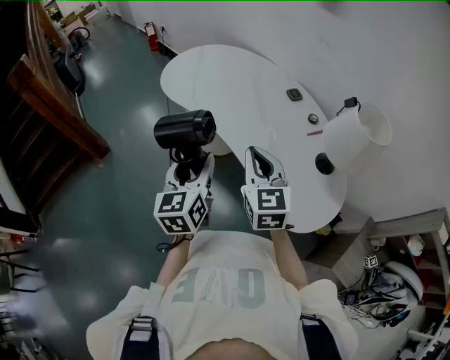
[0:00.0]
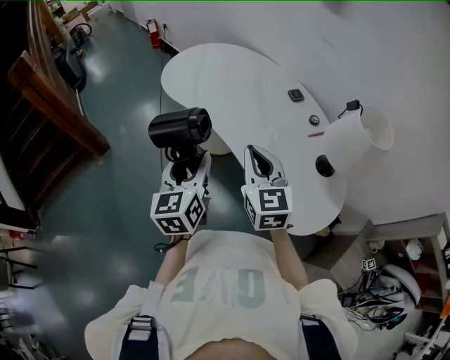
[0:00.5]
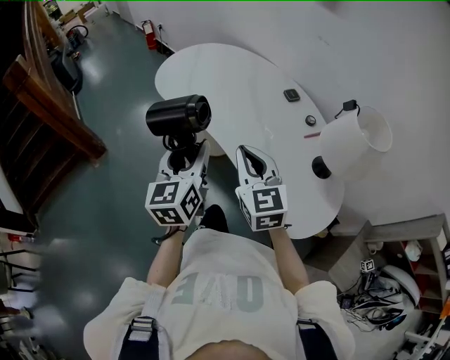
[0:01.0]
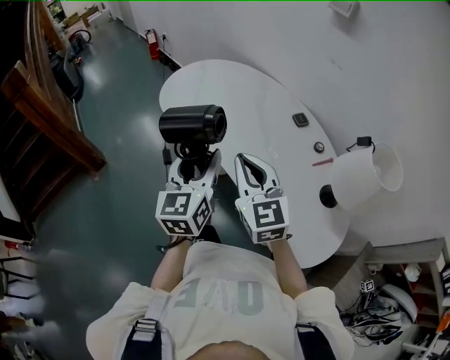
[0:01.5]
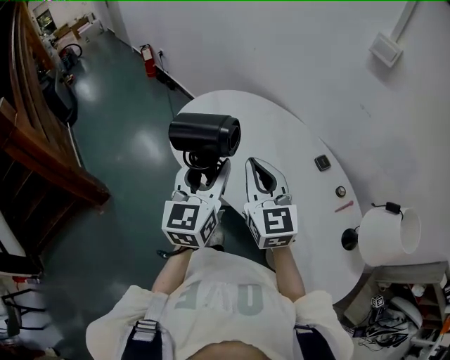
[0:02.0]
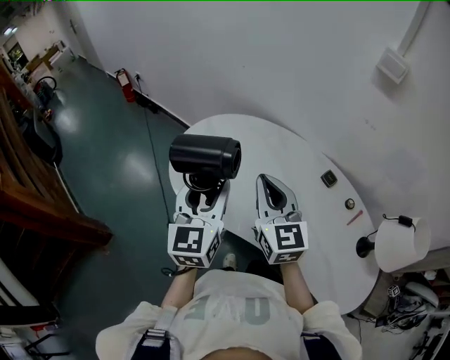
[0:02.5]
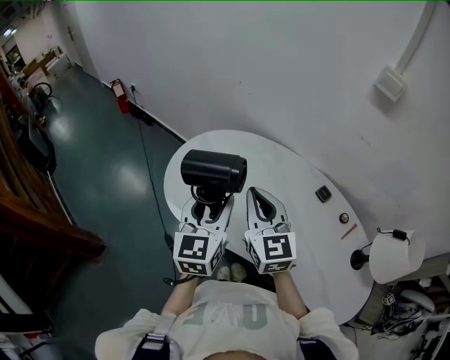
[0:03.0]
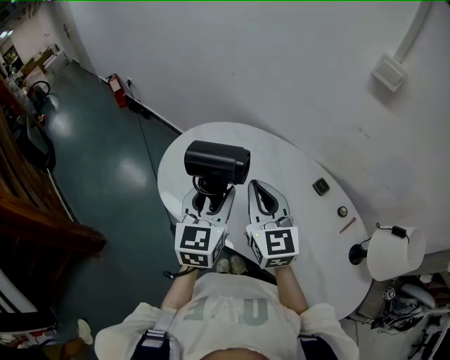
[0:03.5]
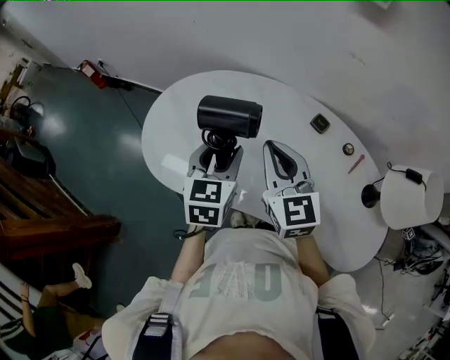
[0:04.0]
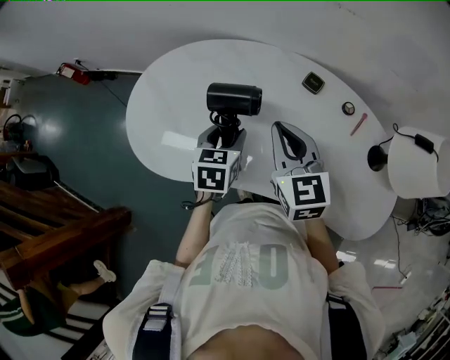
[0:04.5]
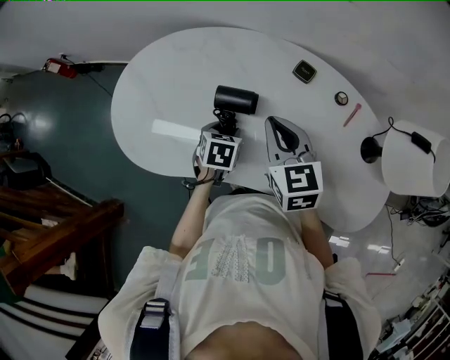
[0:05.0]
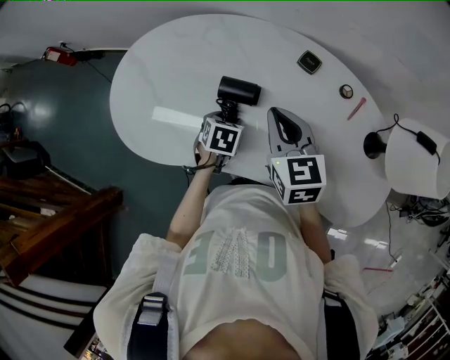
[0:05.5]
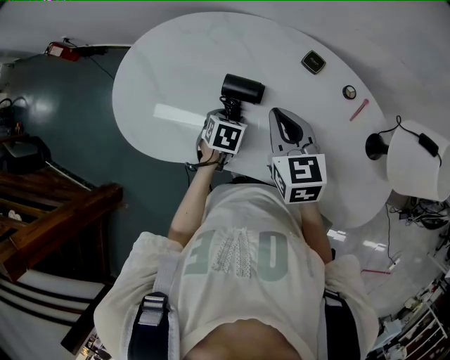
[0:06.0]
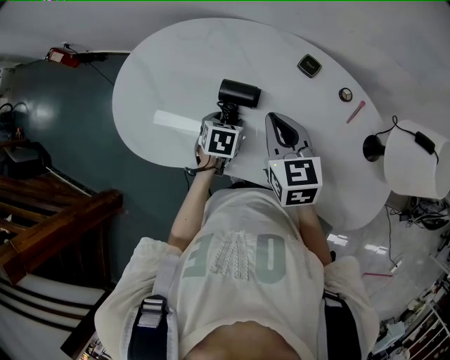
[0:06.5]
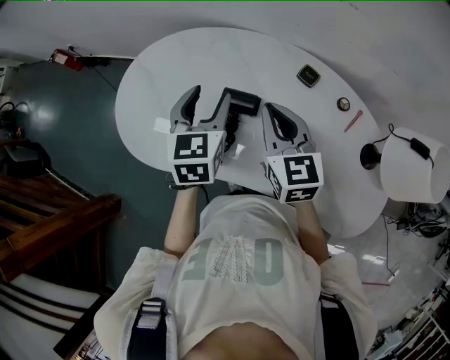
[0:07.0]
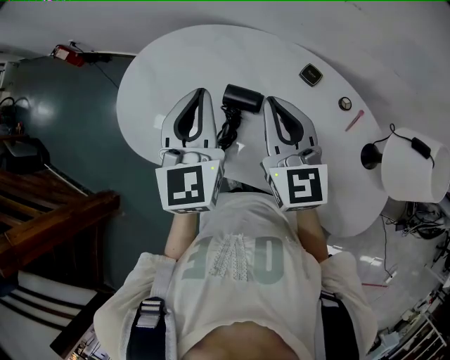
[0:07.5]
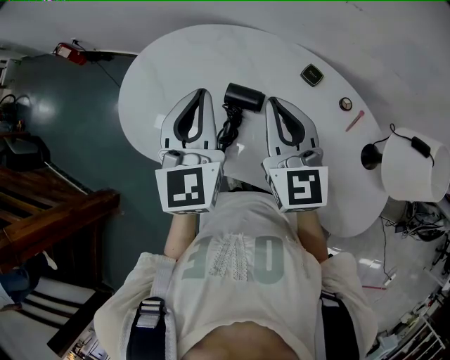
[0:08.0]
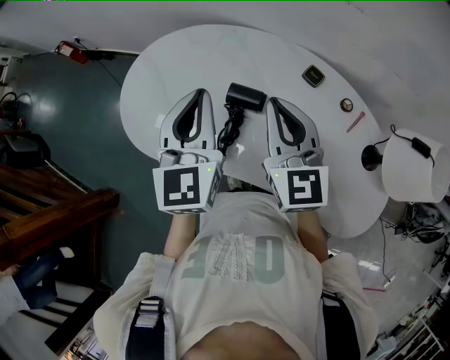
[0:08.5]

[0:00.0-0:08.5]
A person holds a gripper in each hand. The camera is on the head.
0.0 to 2.0 s: The left gripper heads forward, covering about 30 cm. Meanwhile the right gripper moves forward and to the left, roughly 30 cm.
2.0 to 4.0 s: The right gripper travels forward and to the right by about 10 cm, and rotates approximately 20 degrees; the left gripper shifts approximately 20 cm forward, downward and to the right, and rotates some 30 degrees.
4.0 to 6.5 s: The right gripper moves downward and to the right, about 15 cm, and turns by about 20 degrees. Meanwhile the left gripper heads downward, covering approximately 25 cm, and tilts its fingers approximately 30 degrees downward.
6.5 to 8.5 s: The right gripper shifts approximately 10 cm upward, and changes its angle by about 20 degrees. The left gripper heads upward, covering approximately 30 cm, tips its fingers upward by some 50 degrees, and closes its fingers.

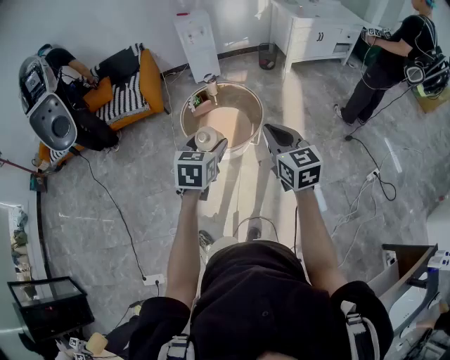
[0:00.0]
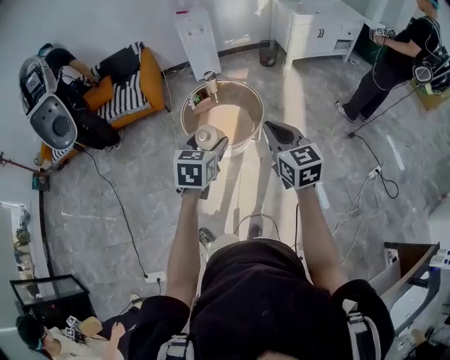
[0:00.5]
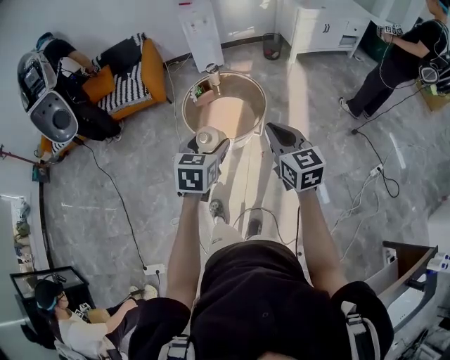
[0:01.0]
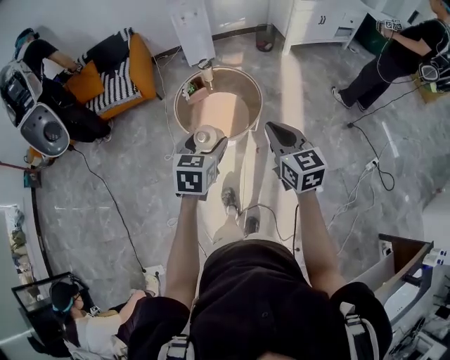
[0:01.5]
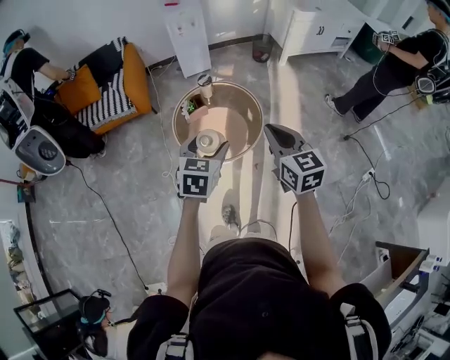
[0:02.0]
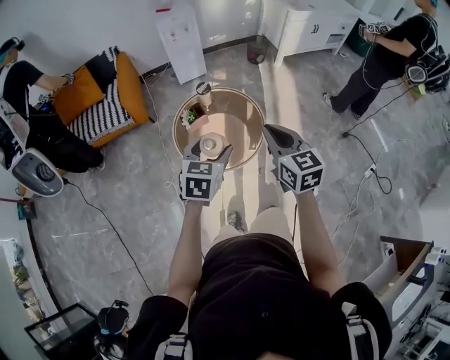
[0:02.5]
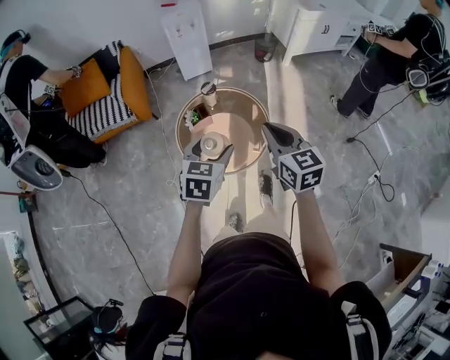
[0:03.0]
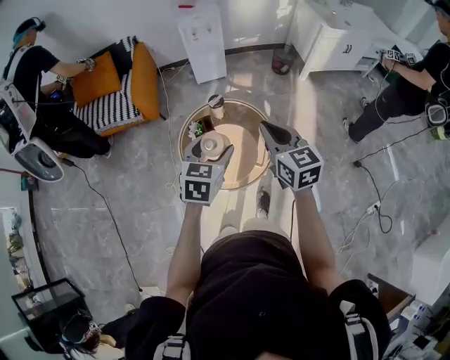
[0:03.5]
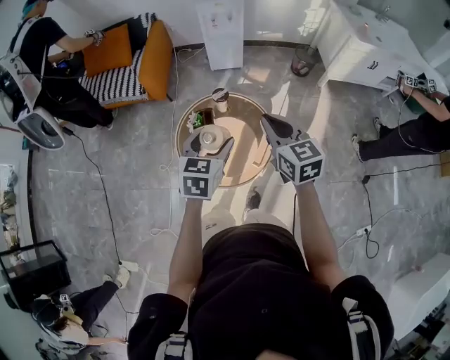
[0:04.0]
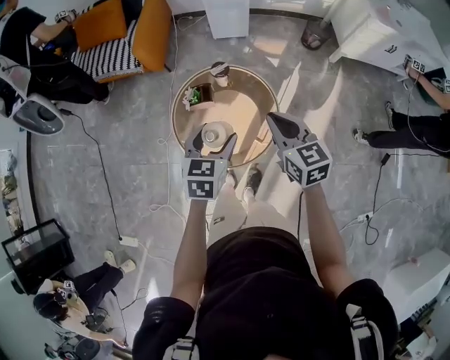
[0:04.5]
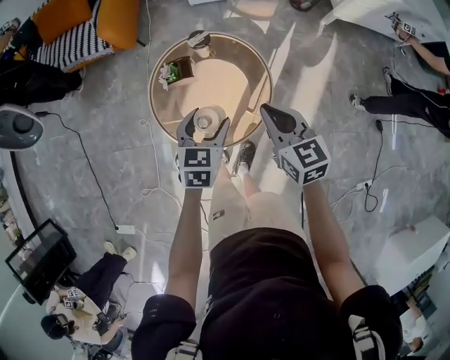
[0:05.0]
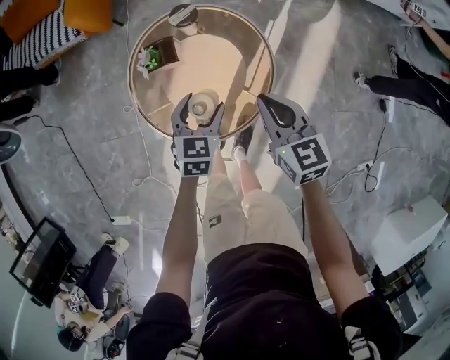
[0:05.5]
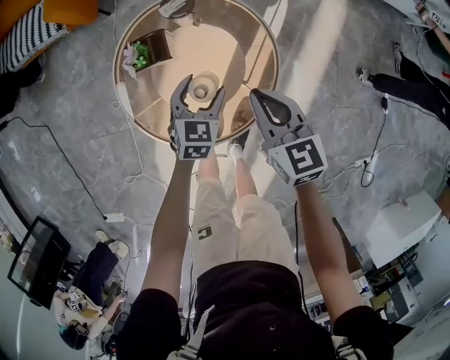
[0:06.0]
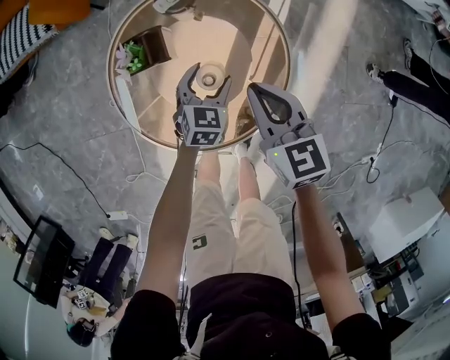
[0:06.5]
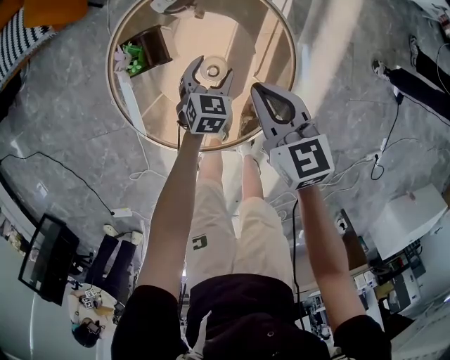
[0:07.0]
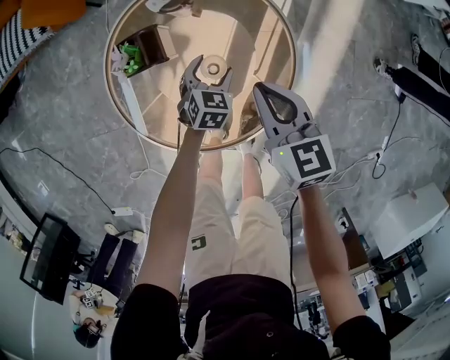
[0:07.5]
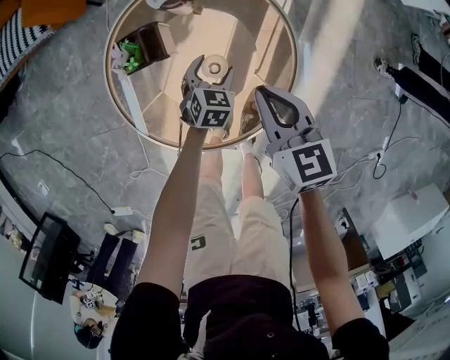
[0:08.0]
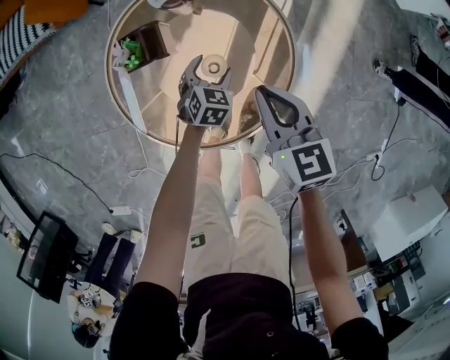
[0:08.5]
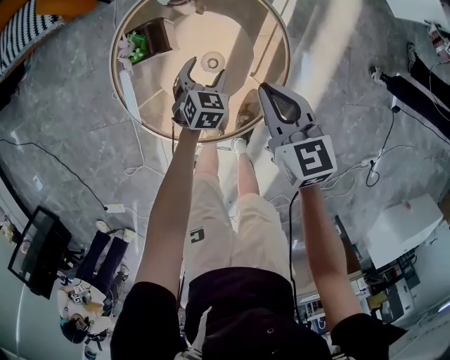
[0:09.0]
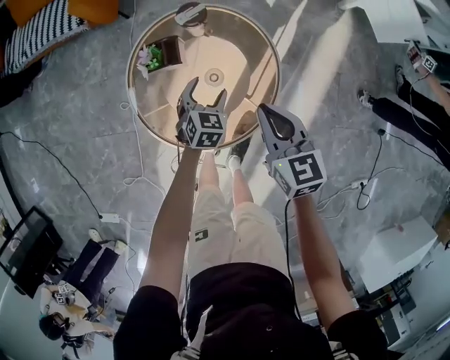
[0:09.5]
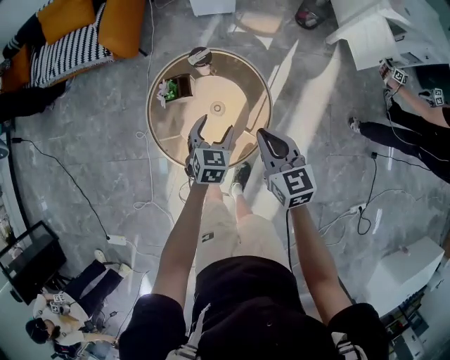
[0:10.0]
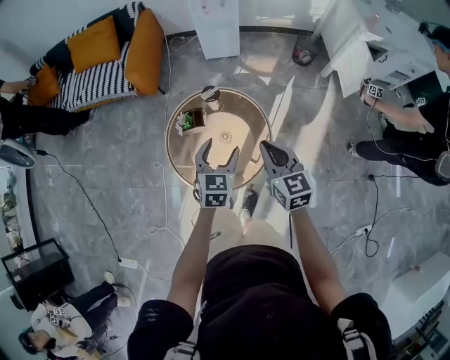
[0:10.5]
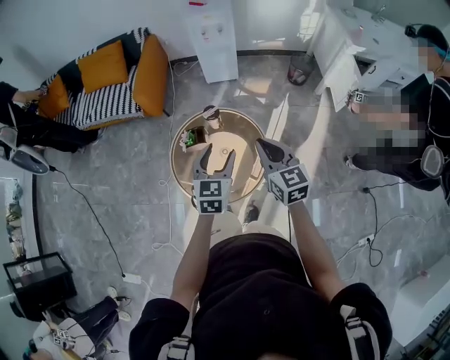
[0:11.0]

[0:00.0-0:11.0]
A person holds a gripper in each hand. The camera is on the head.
0.0 to 2.0 s: Both grippers travel together forward, roughly 15 cm.
2.0 to 3.5 s: Both grippers travel together forward, some 20 cm.
3.5 to 5.5 s: Both grippers travel together downward, roughly 30 cm.
5.5 to 7.5 s: The left gripper moves downward, about 25 cm. The right gripper moves downward and forward, roughly 15 cm.
7.5 to 9.0 s: The grippers move only a little.
9.0 to 11.0 s: The left gripper is displaced upward by some 50 cm, and points its fingers approximately 30 degrees further upward. The right gripper moves upward, about 30 cm, and swivels approximately 20 degrees.

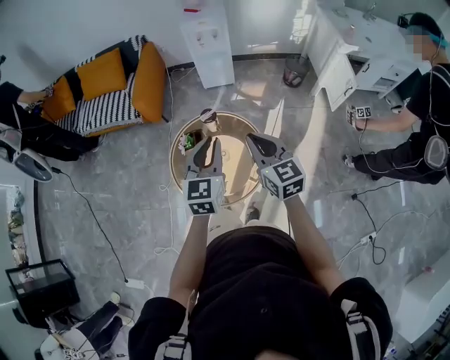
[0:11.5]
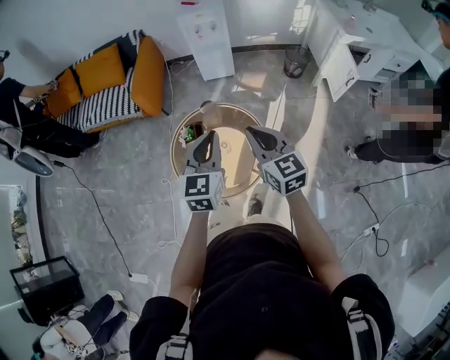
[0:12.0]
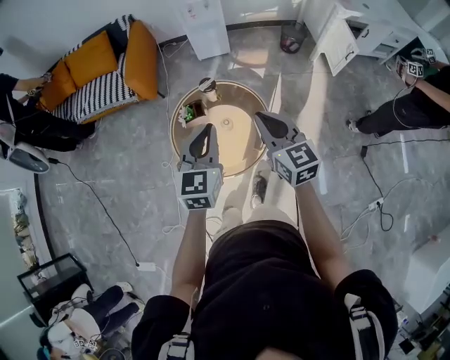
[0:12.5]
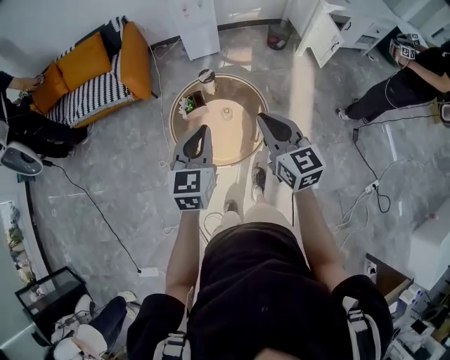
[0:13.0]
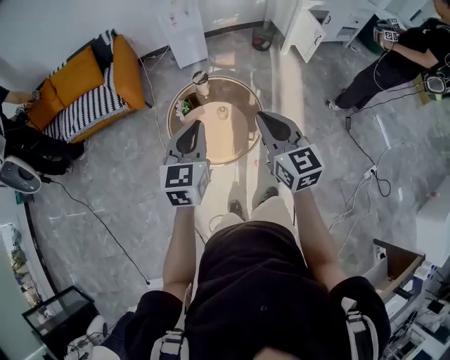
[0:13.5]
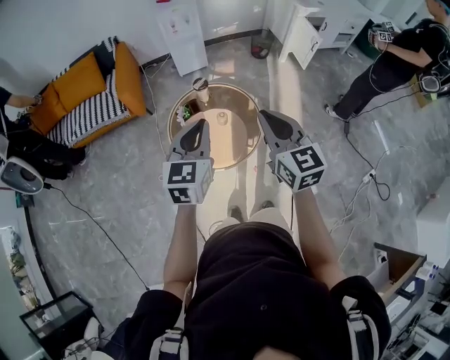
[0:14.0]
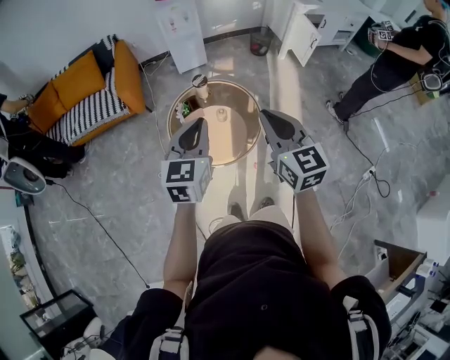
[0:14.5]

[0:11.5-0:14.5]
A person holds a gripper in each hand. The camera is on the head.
11.5 to 13.0 s: The right gripper moves backward and to the left, approximately 15 cm; the left gripper goes approximately 15 cm to the left and backward.
13.0 to 14.5 s: The right gripper goes some 10 cm backward and upward; the left gripper travels backward by some 5 cm.

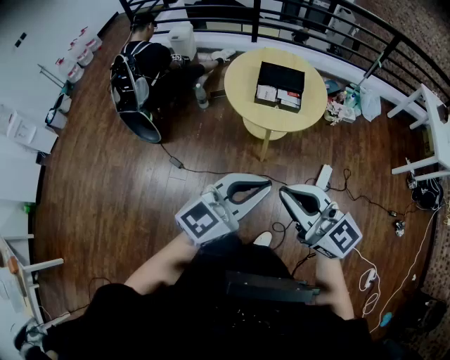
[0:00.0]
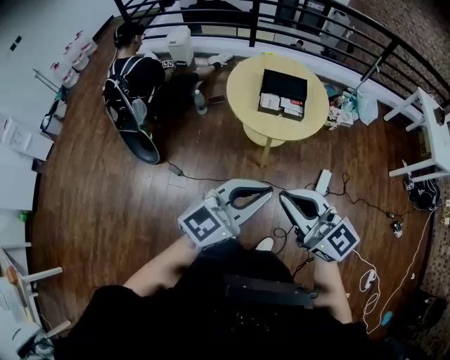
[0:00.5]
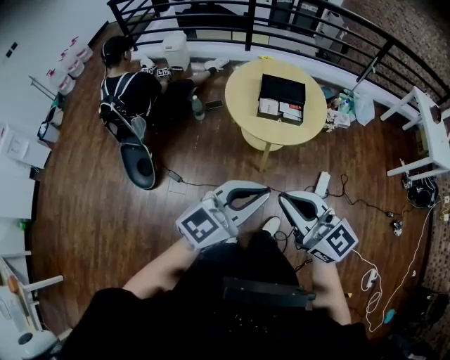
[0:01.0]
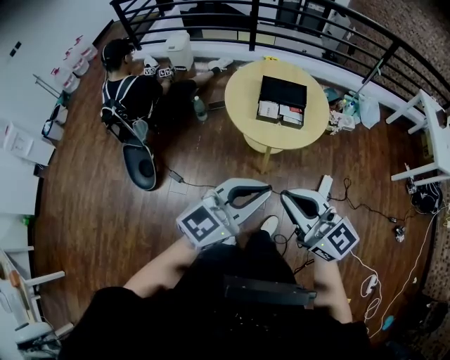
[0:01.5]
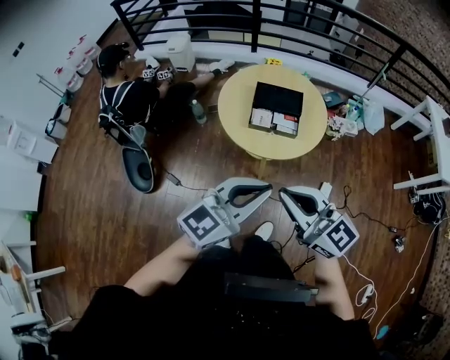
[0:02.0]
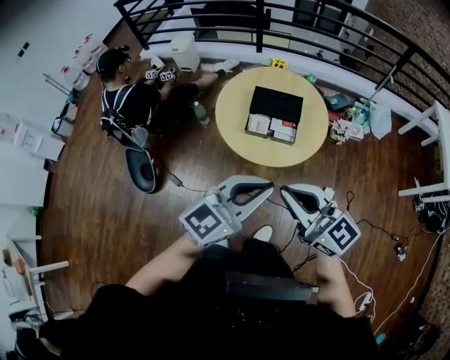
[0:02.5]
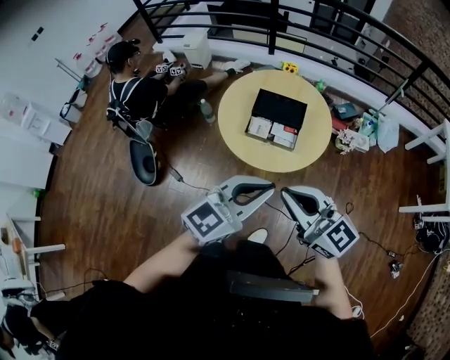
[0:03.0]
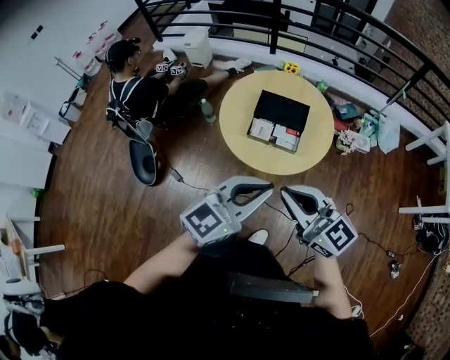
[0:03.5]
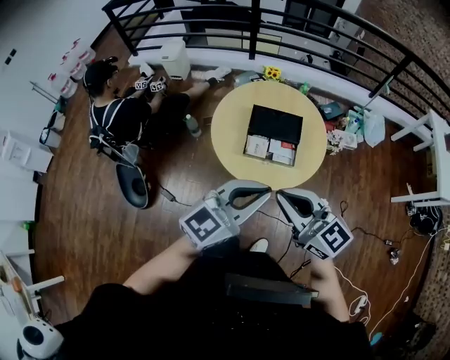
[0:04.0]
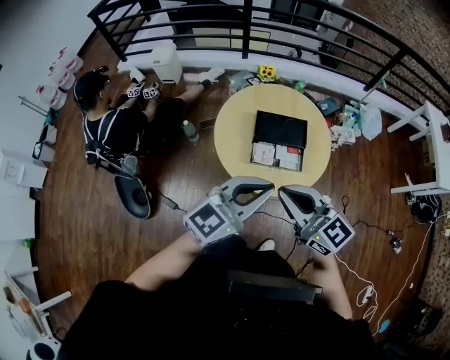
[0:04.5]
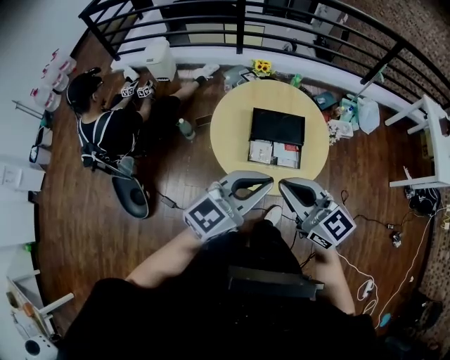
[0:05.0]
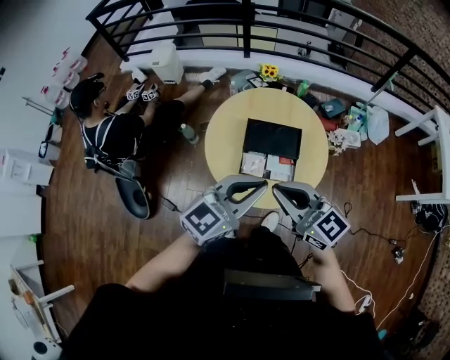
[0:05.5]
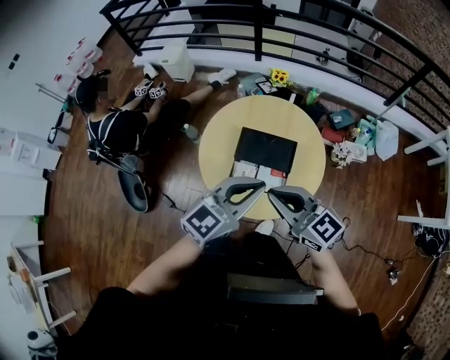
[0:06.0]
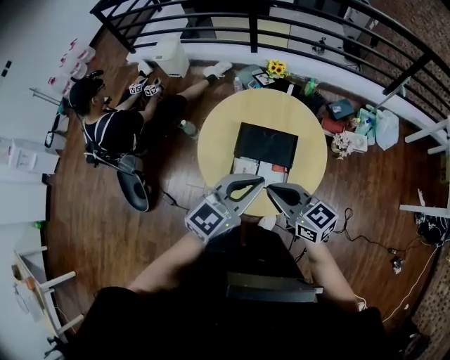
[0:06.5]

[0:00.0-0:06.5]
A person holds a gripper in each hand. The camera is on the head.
0.0 to 2.0 s: The two grippers go some 20 cm forward.
2.0 to 4.5 s: Both grippers move forward, some 30 cm.
4.5 to 6.5 s: The right gripper travels forward, to the right and downward by approximately 30 cm. The left gripper shifts roughly 30 cm forward and to the right.
